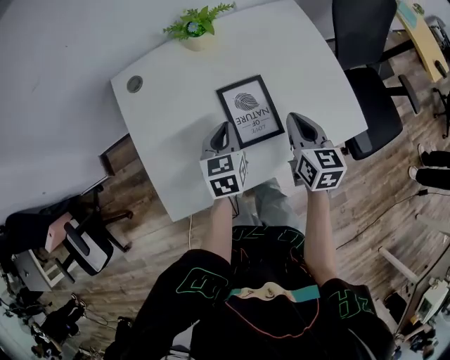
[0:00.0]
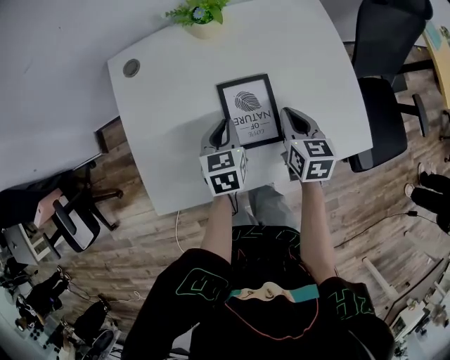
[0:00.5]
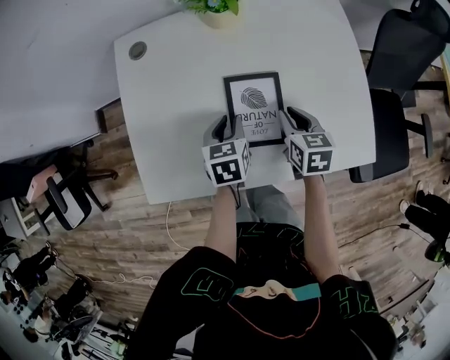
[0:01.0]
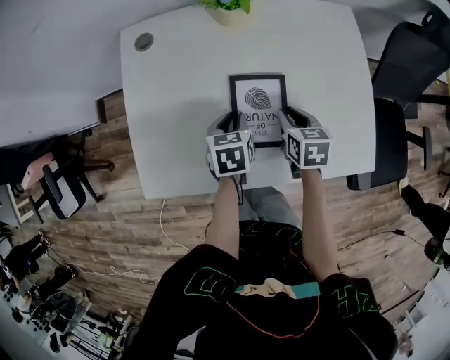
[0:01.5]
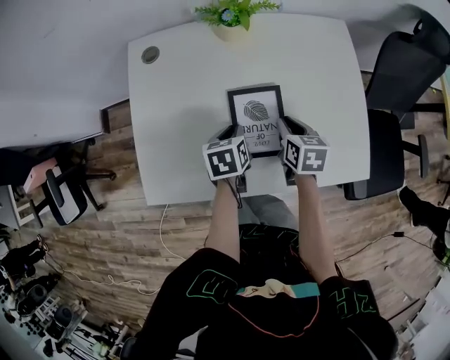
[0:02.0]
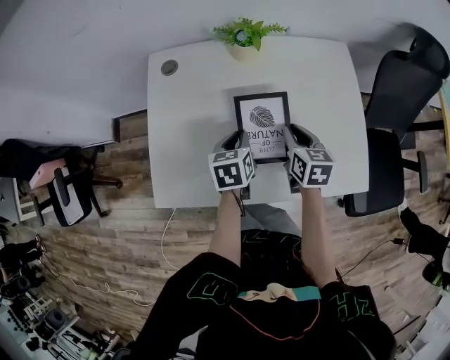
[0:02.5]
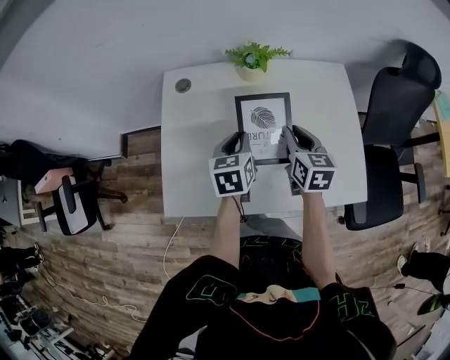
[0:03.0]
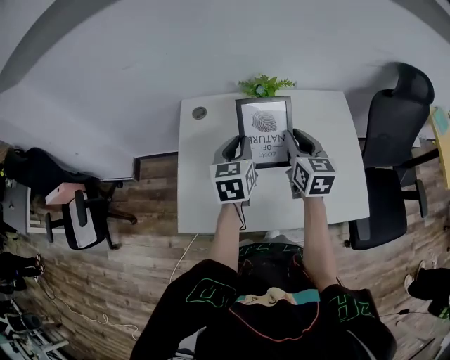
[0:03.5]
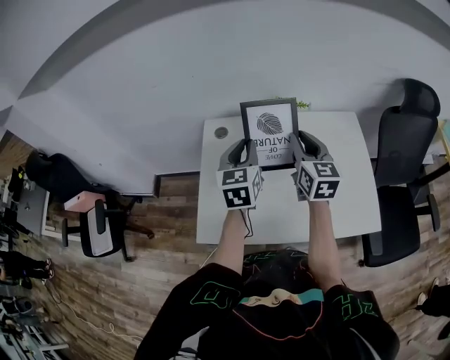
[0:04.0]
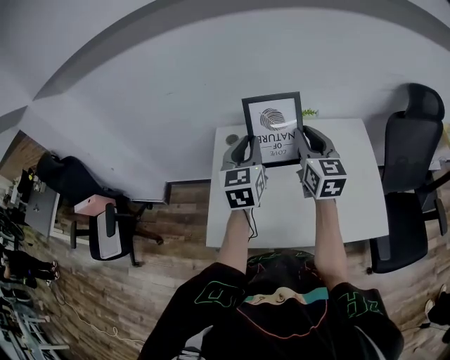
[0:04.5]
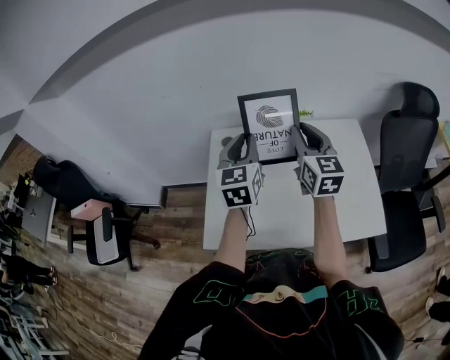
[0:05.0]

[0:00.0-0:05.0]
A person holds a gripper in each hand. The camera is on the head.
0:00.0 to 0:02.5: The right gripper is displaced forward and downward by approximately 10 cm; the left gripper reaches roughly 10 cm downward, then returns, and changes its angle by about 20 degrees.
0:02.5 to 0:05.0: Both grippers travel together upward, some 30 cm. The right gripper angles its fingers upward, by about 40 degrees, while the left gripper angles its fingers upward, by some 40 degrees.

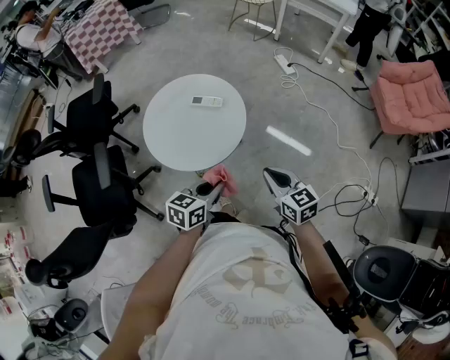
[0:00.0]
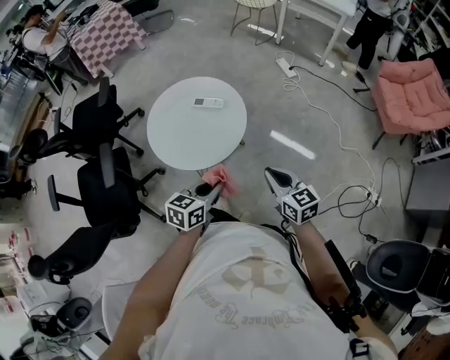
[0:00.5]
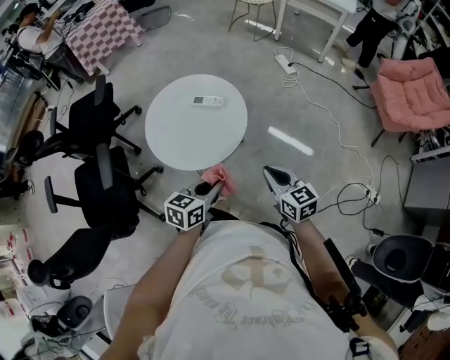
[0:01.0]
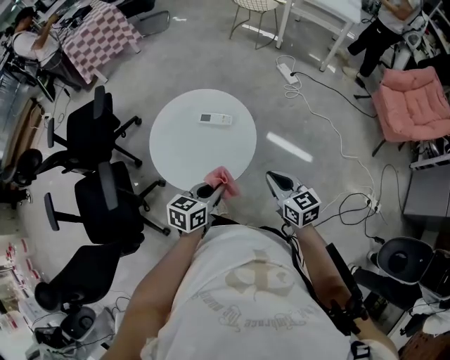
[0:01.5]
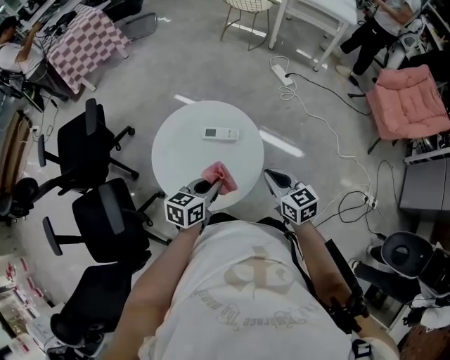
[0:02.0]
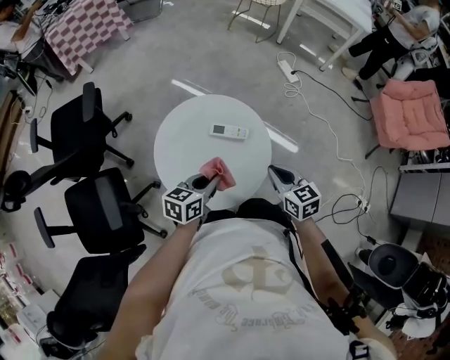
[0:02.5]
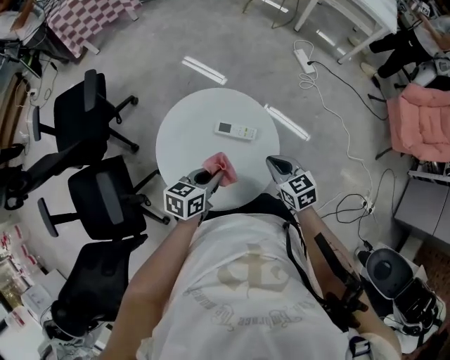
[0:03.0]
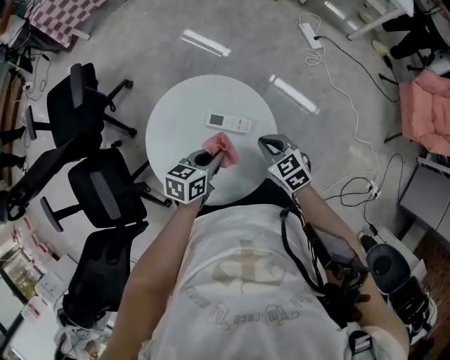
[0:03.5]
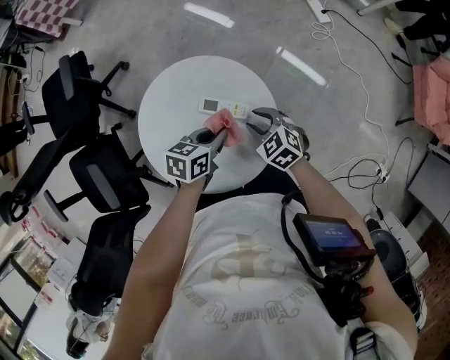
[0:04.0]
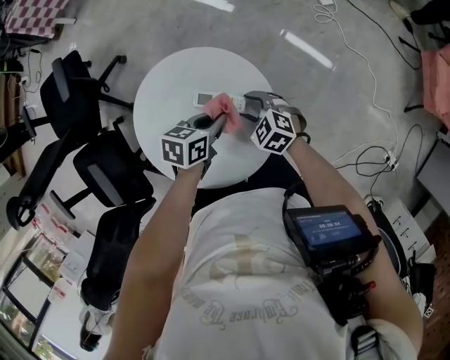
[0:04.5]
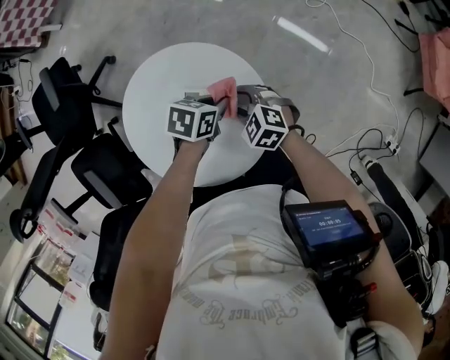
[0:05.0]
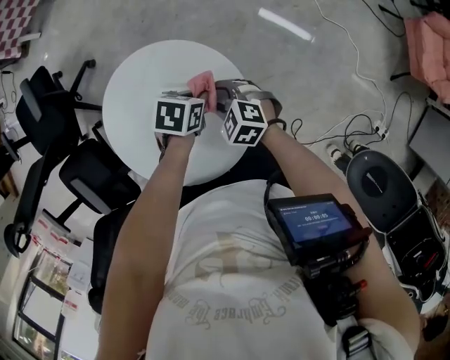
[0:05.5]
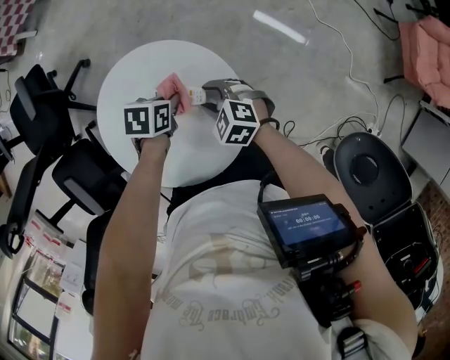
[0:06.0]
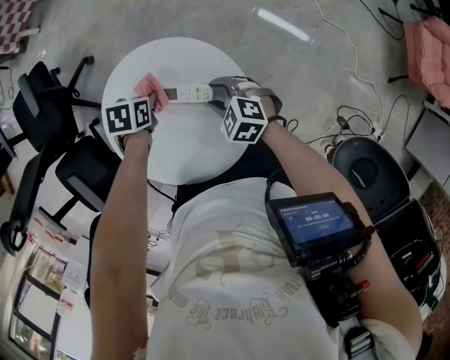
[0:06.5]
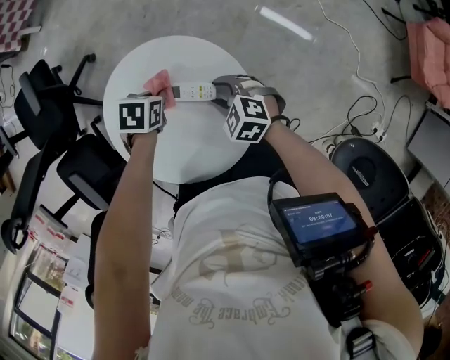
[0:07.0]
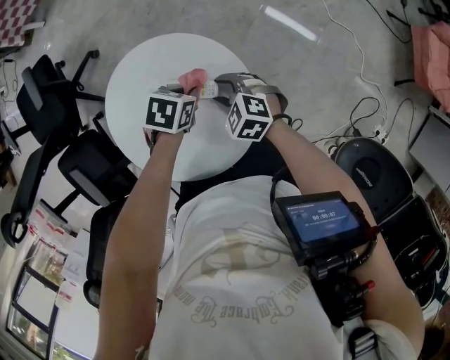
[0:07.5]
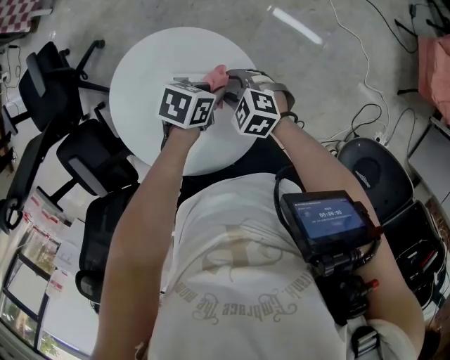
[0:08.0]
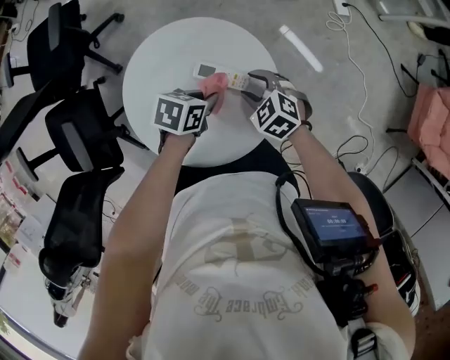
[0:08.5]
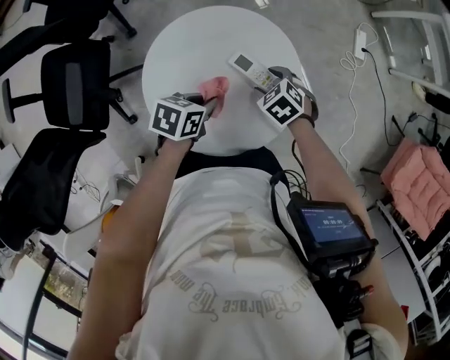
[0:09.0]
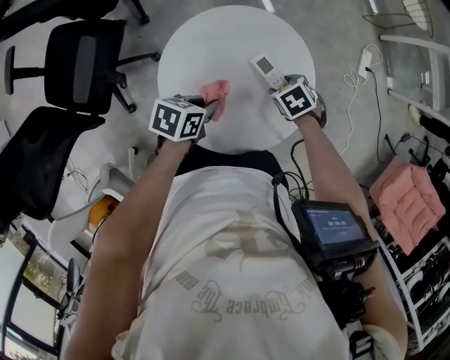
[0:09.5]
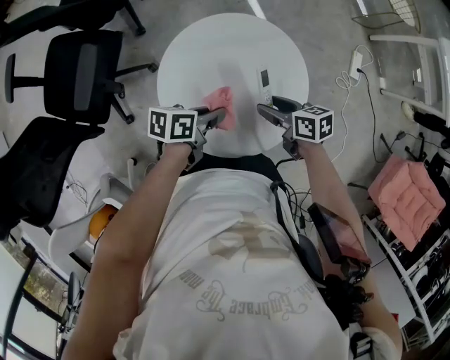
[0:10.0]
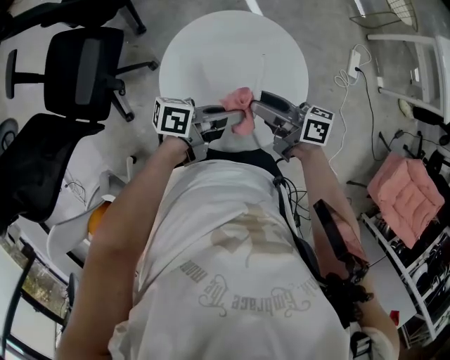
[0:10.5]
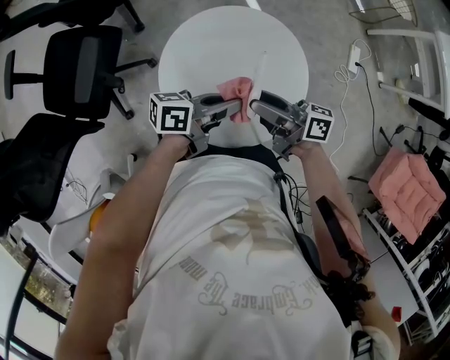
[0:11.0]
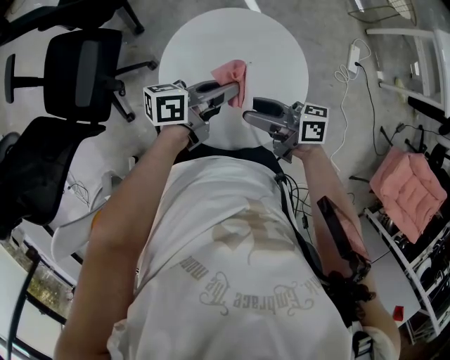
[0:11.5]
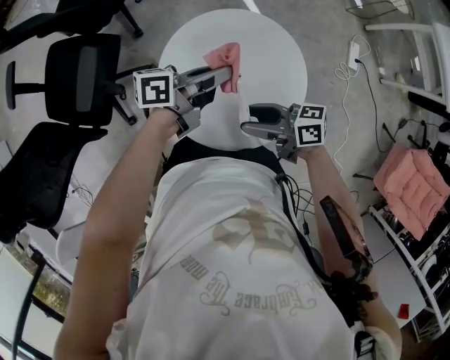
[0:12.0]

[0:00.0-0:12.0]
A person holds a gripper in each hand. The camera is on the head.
0:00.0 to 0:02.0: Both grippers move forward and to the left, approximately 20 cm.
0:02.0 to 0:04.0: The right gripper shifts roughly 20 cm downward and forward, rotates some 40 degrees, and opens; the left gripper travels forward and downward by approximately 20 cm, and rotates approximately 20 degrees.
0:04.0 to 0:06.0: The left gripper shifts approximately 5 cm downward, and changes its angle by roughly 20 degrees.
0:06.0 to 0:08.0: The left gripper ends up approximately 10 cm from where it was.
0:08.0 to 0:10.0: The left gripper changes place by approximately 20 cm, and swivels some 60 degrees. Meanwhile the right gripper changes place by approximately 10 cm, and turns by some 40 degrees.
0:10.0 to 0:12.0: Both grippers travel together upward, some 10 cm. The left gripper changes its angle by about 30 degrees. The right gripper rotates approximately 30 degrees.

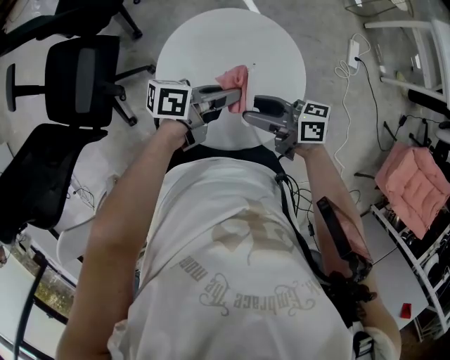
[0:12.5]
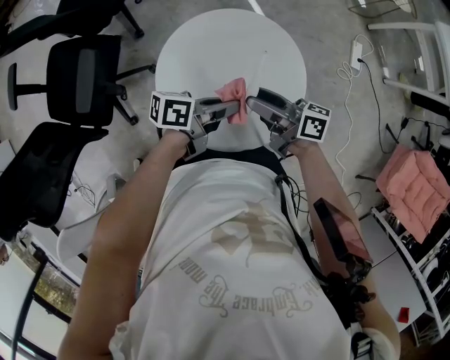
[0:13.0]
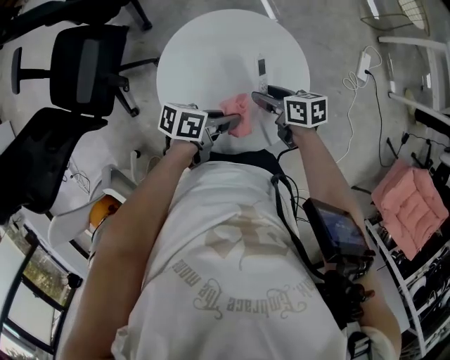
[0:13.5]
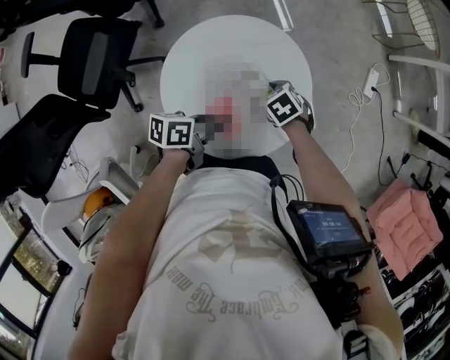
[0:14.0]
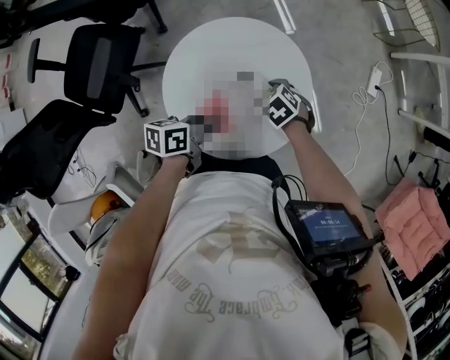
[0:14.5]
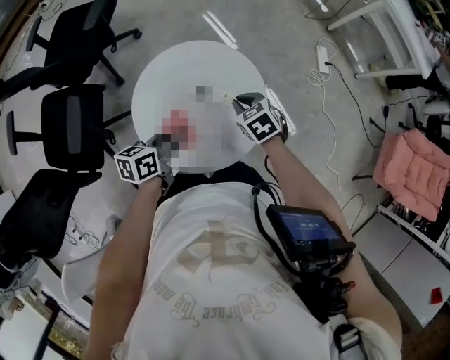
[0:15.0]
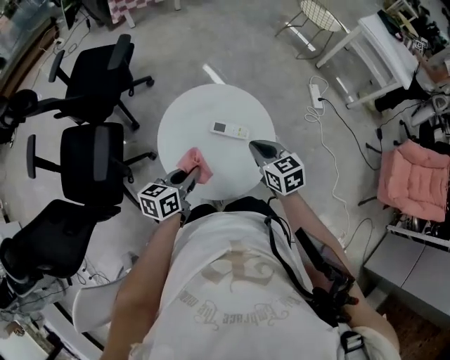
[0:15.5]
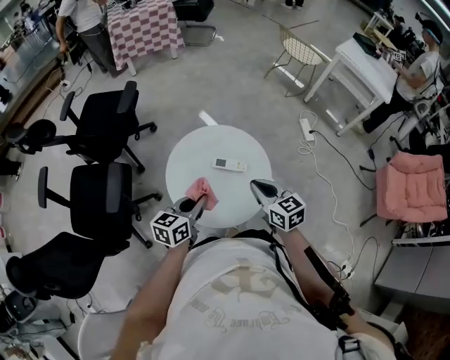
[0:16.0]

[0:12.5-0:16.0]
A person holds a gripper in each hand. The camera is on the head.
0:12.5 to 0:14.5: The right gripper heads downward, covering approximately 15 cm, and tips its fingers downward by approximately 60 degrees, while the left gripper travels downward by some 5 cm, and swivels approximately 30 degrees.
0:14.5 to 0:16.0: The right gripper travels upward and backward by roughly 25 cm, points its fingers about 50 degrees further upward, and closes. The left gripper travels upward and backward by about 15 cm, and changes its angle by some 40 degrees.

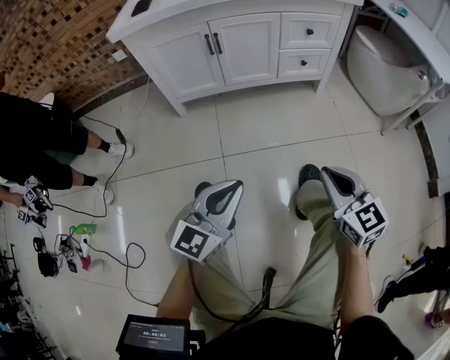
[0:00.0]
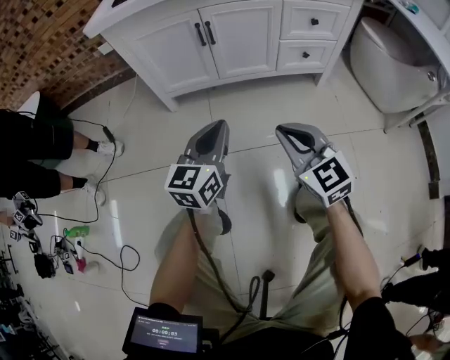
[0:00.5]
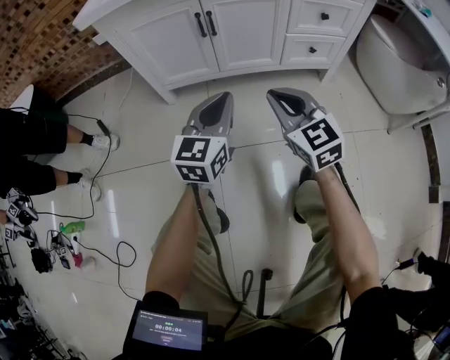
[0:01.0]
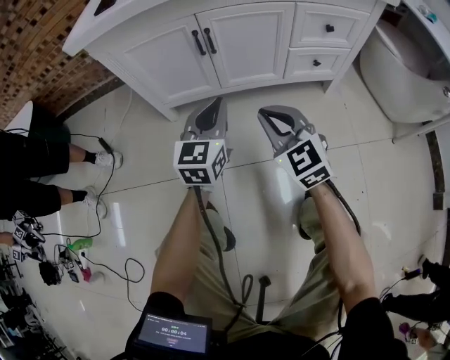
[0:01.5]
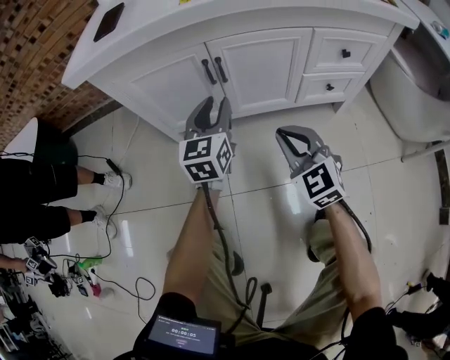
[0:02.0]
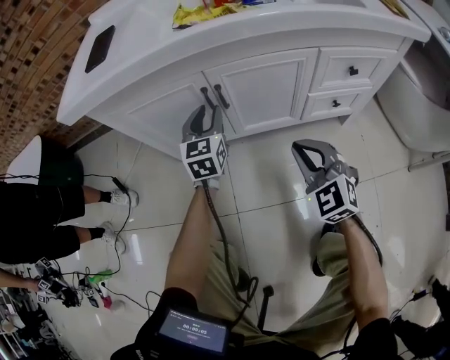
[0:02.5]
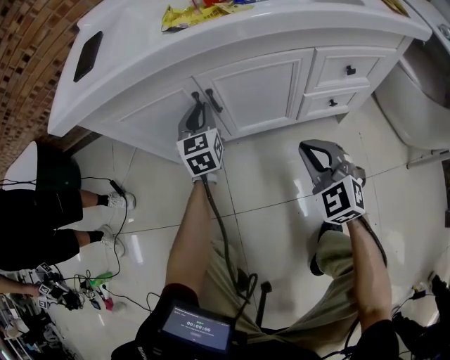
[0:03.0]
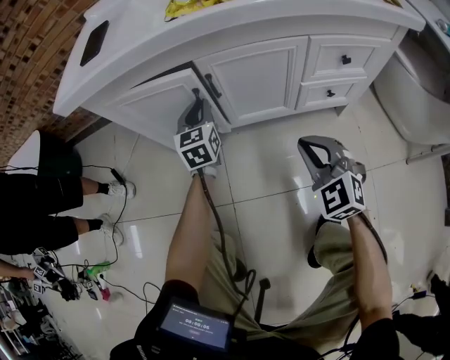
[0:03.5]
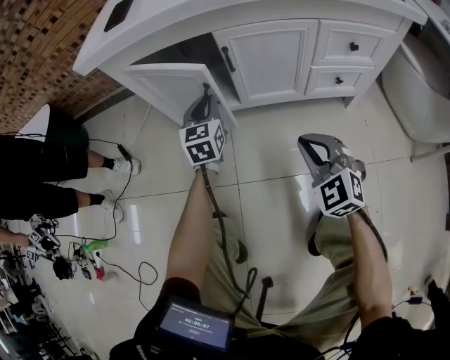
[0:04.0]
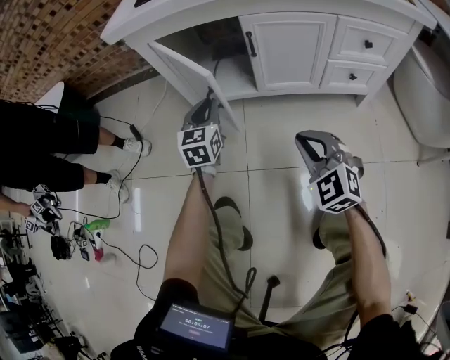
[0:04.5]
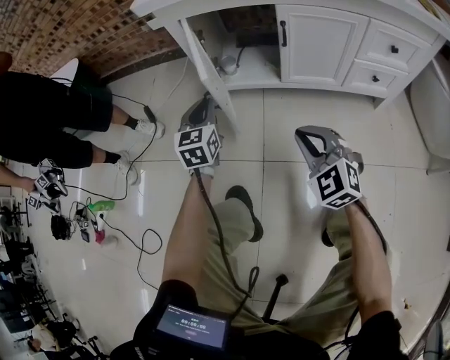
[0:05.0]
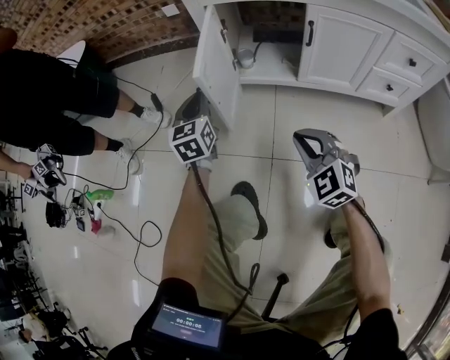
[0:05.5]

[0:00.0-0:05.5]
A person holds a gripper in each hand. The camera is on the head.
0:00.0 to 0:02.0: Both grippers move forward, approximately 40 cm. The right gripper turns by roughly 20 degrees. Meanwhile the left gripper swivels roughly 30 degrees, and opens up.
0:02.0 to 0:03.5: The right gripper moves to the right, approximately 5 cm. Meanwhile the left gripper heads forward, covering about 10 cm, and closes up.
0:03.5 to 0:05.5: The right gripper moves to the left, roughly 25 cm. Meanwhile the left gripper moves to the left and backward, about 35 cm.
